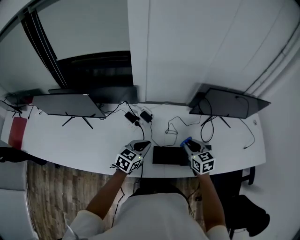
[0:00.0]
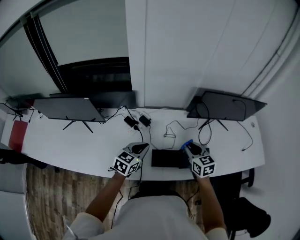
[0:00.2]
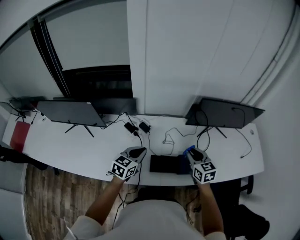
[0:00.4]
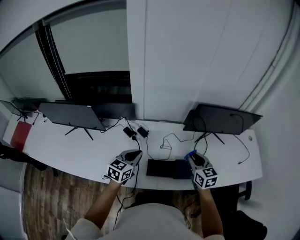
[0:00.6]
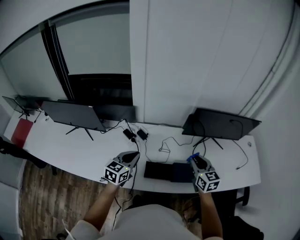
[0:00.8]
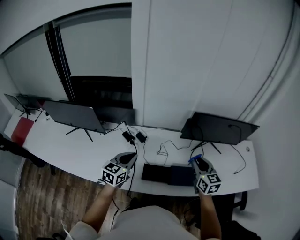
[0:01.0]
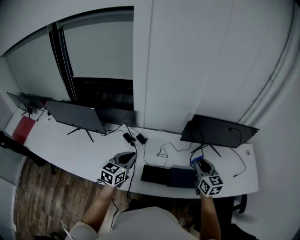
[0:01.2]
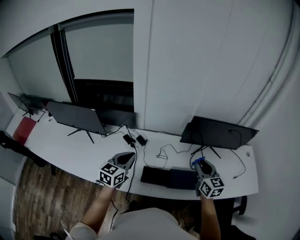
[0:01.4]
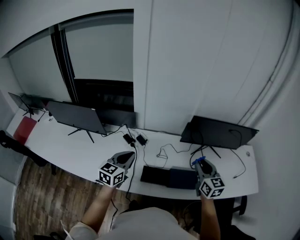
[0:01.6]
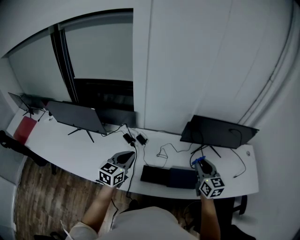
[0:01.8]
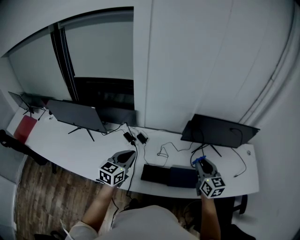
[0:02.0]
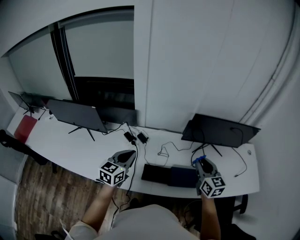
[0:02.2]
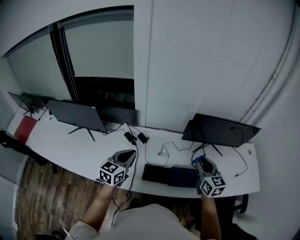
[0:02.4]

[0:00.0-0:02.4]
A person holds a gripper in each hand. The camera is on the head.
0:00.0 to 0:01.2: The right gripper travels upward and to the right by roughly 20 cm. Meanwhile the left gripper shifts roughly 10 cm upward.
0:01.2 to 0:02.4: The grippers stay close to where they were, moving slightly.

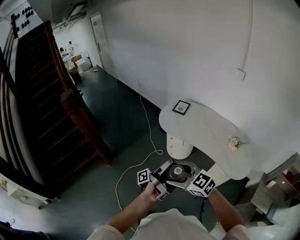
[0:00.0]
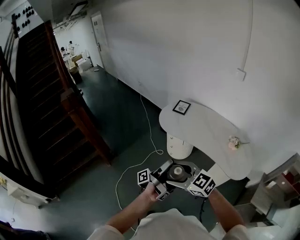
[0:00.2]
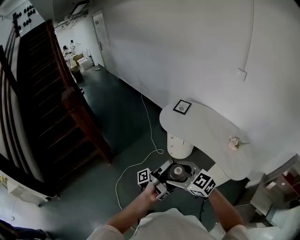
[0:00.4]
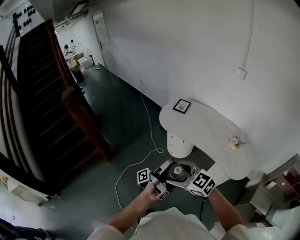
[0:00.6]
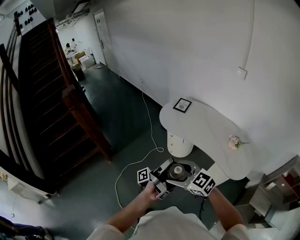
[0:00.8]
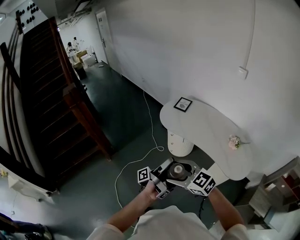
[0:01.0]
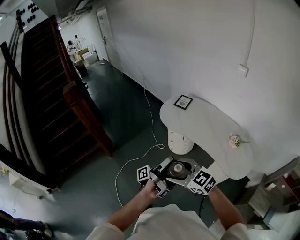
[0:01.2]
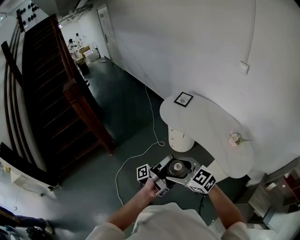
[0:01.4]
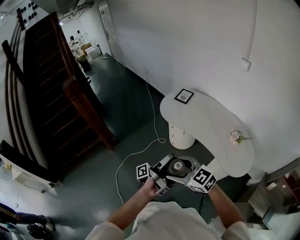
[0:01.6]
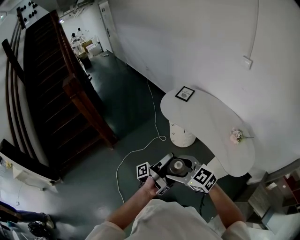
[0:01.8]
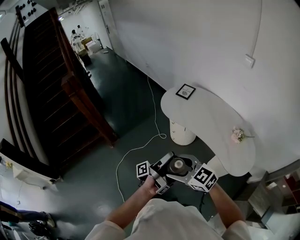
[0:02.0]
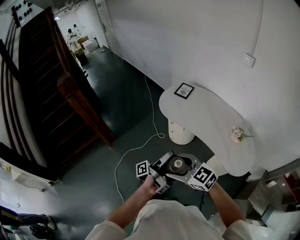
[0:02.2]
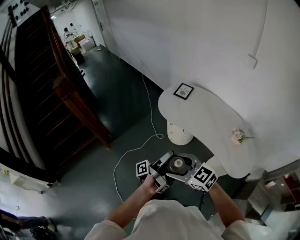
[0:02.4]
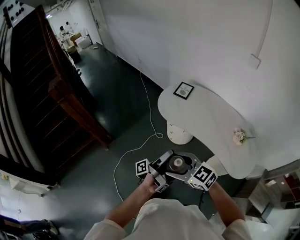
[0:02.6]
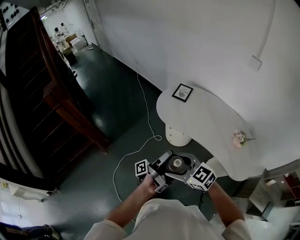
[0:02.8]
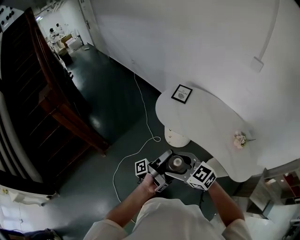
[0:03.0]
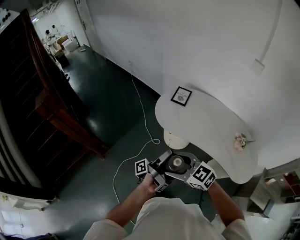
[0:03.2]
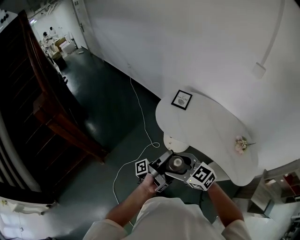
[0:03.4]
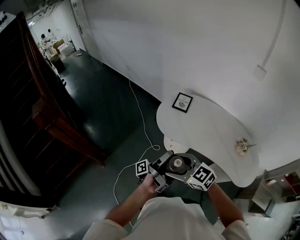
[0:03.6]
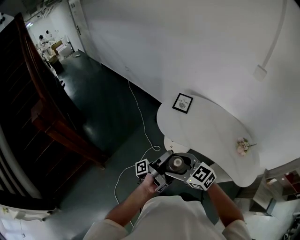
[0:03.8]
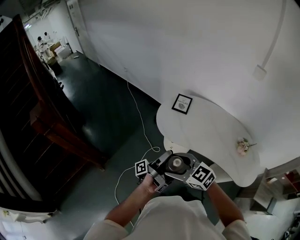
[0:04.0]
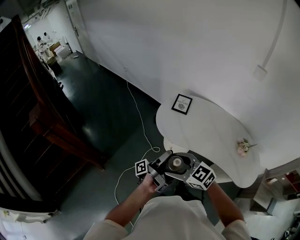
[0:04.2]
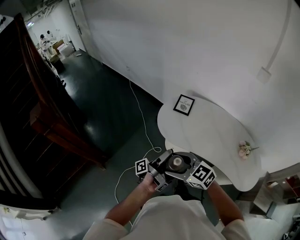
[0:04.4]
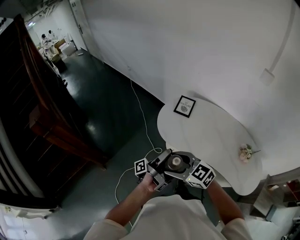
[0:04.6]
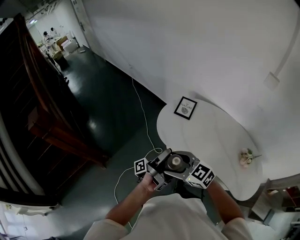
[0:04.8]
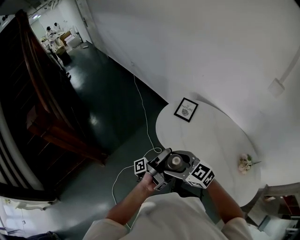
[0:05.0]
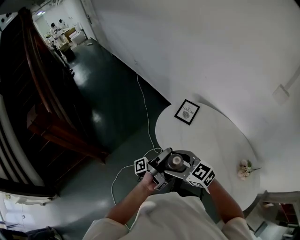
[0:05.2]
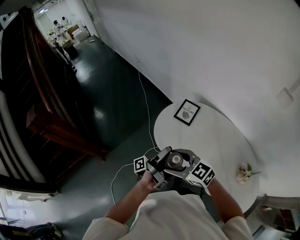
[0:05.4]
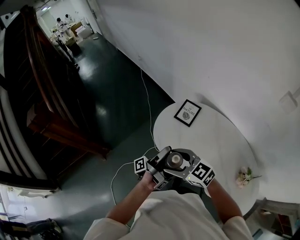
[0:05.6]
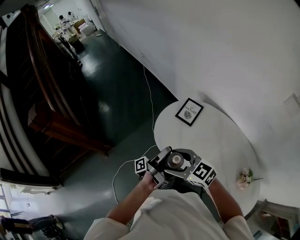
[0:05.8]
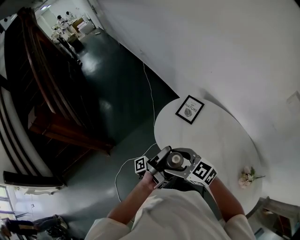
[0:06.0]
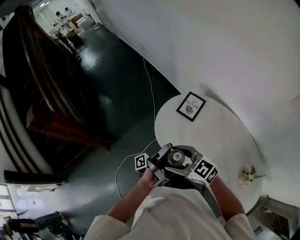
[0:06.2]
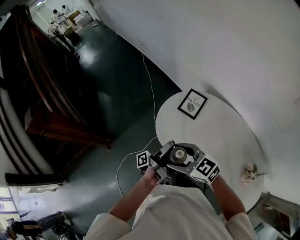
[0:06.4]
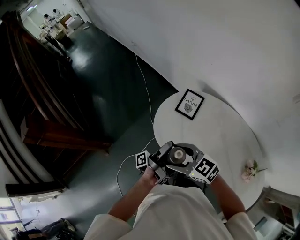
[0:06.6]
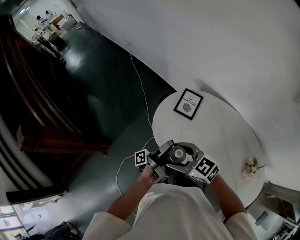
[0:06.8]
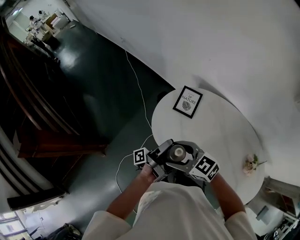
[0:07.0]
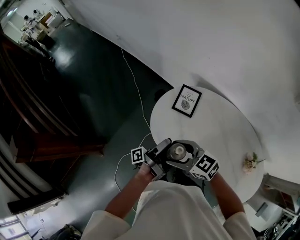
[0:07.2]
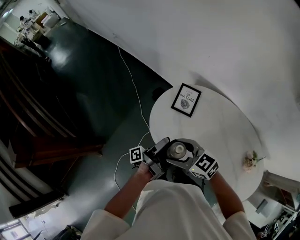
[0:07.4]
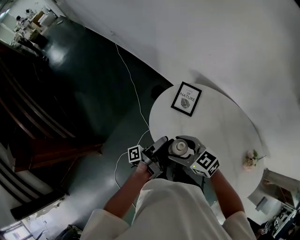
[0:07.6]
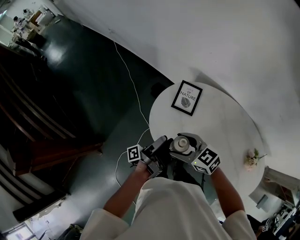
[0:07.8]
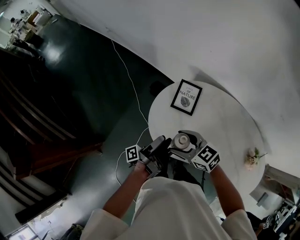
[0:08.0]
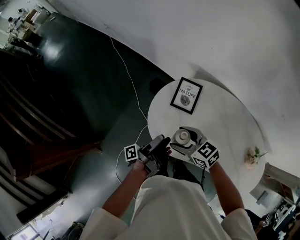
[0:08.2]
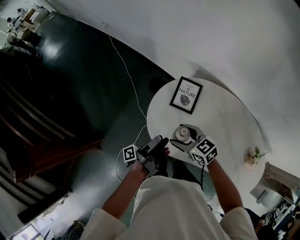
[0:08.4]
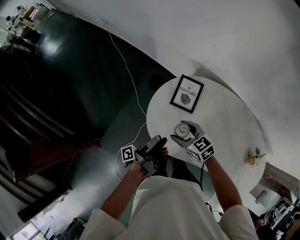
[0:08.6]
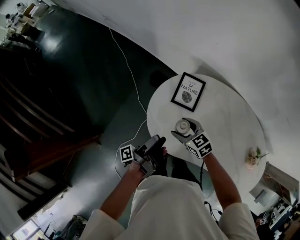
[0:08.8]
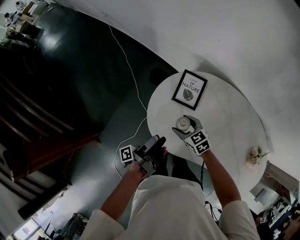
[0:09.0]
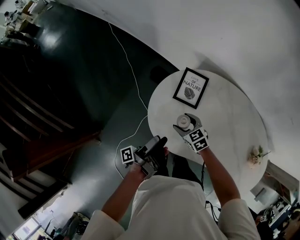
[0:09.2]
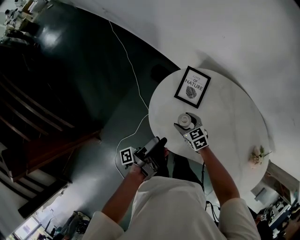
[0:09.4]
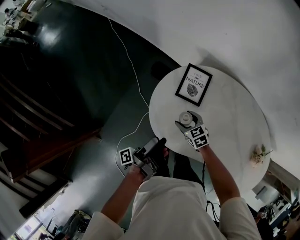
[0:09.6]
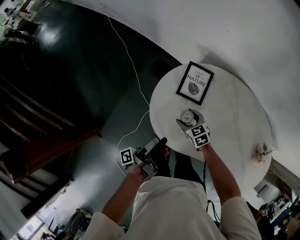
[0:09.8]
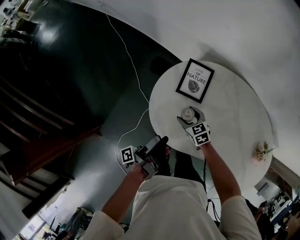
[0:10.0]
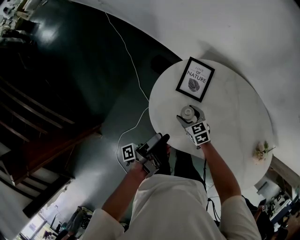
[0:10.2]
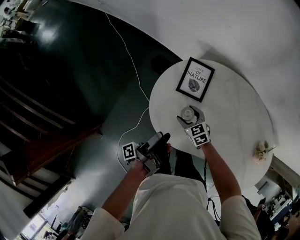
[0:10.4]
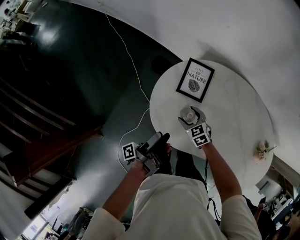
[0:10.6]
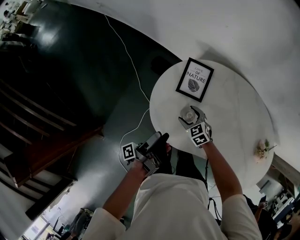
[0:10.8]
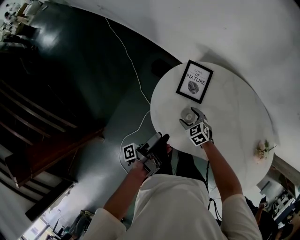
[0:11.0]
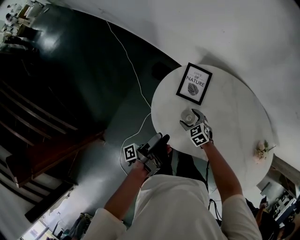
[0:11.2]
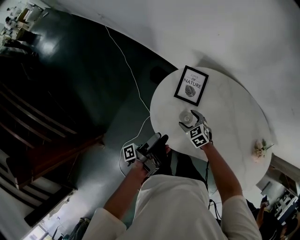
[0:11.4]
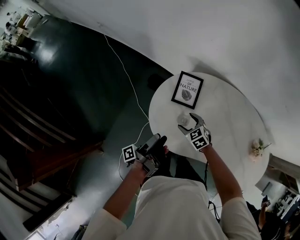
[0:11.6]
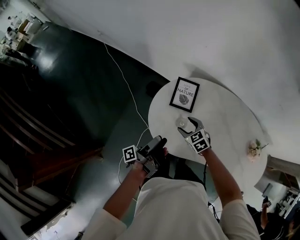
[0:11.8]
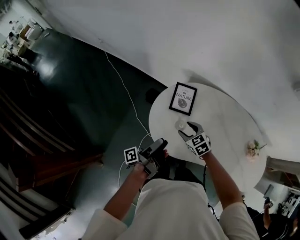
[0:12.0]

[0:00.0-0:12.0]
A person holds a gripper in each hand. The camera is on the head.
0:00.0 to 0:01.6: The right gripper changes place by approximately 10 cm.
0:01.6 to 0:03.0: The right gripper ends up roughly 20 cm from where it was.
0:03.0 to 0:04.4: The right gripper shifts by about 15 cm.
0:04.4 to 0:06.0: The right gripper moves about 25 cm.
0:06.0 to 0:07.6: The right gripper moves some 15 cm, and swivels some 20 degrees.
0:07.6 to 0:09.0: The right gripper travels downward by some 20 cm, and changes its angle by some 20 degrees.
0:09.0 to 0:10.4: The right gripper heads downward, covering about 10 cm.
0:10.4 to 0:12.0: The right gripper heads upward, covering approximately 10 cm.

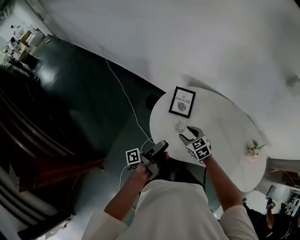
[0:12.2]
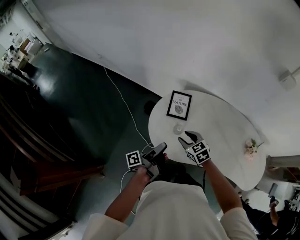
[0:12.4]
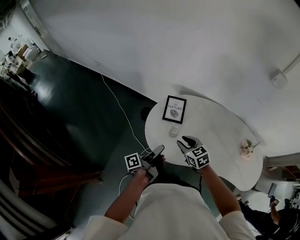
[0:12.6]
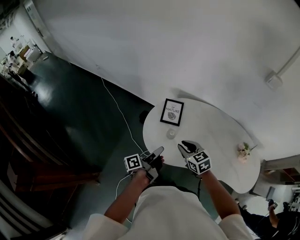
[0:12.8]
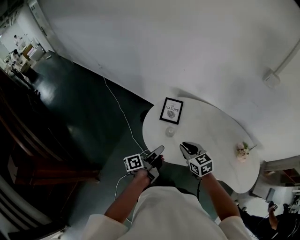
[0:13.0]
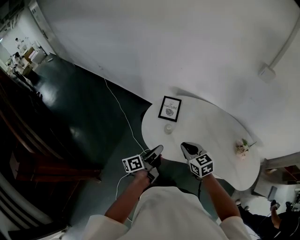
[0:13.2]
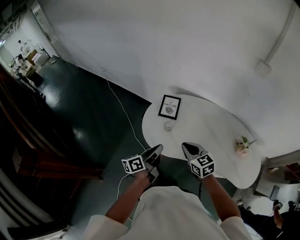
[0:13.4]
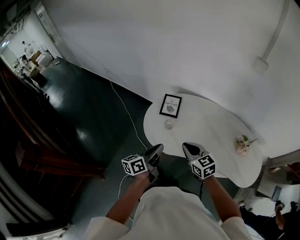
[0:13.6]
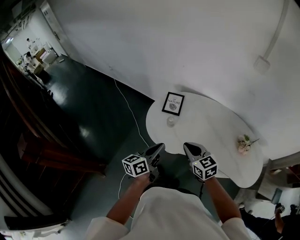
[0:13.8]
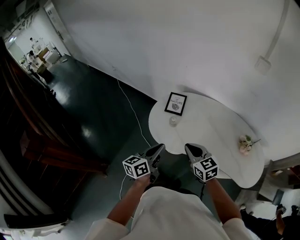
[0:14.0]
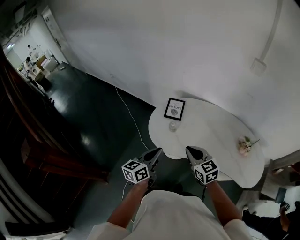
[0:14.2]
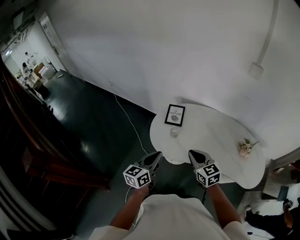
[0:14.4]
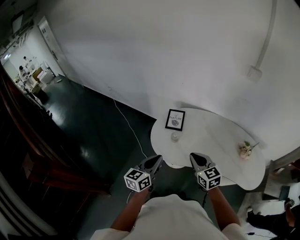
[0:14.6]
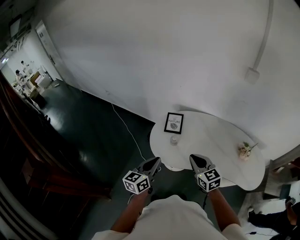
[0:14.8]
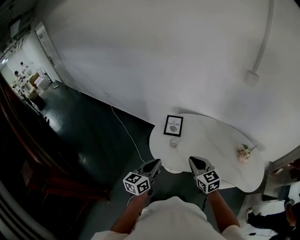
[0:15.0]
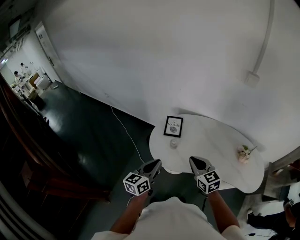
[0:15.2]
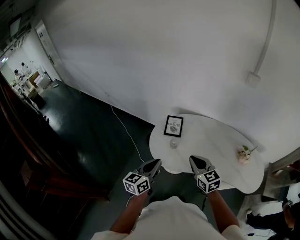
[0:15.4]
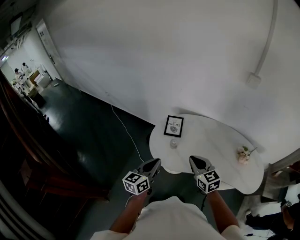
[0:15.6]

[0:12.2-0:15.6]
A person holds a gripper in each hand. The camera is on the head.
0:12.2 to 0:13.8: The right gripper changes place by roughly 30 cm, changes its angle by about 20 degrees, and closes its fingers.
0:13.8 to 0:15.6: The right gripper changes place by approximately 5 cm.

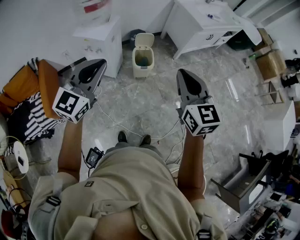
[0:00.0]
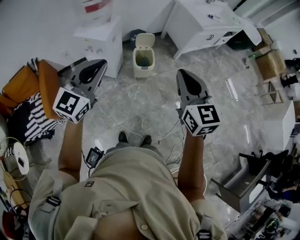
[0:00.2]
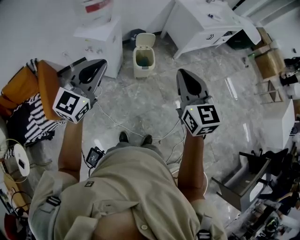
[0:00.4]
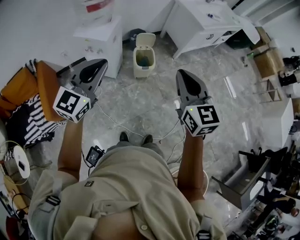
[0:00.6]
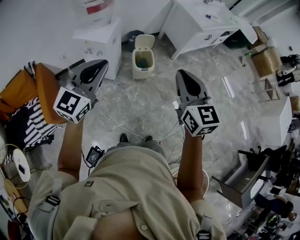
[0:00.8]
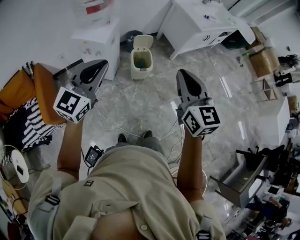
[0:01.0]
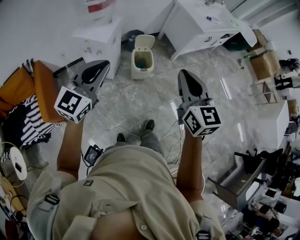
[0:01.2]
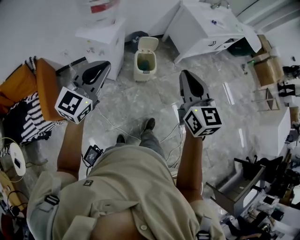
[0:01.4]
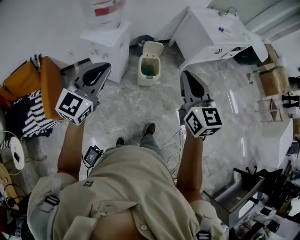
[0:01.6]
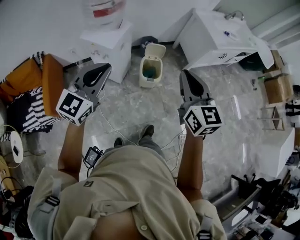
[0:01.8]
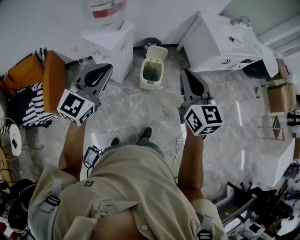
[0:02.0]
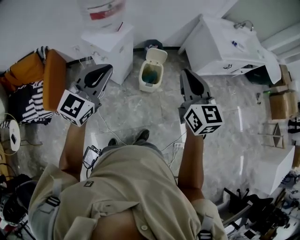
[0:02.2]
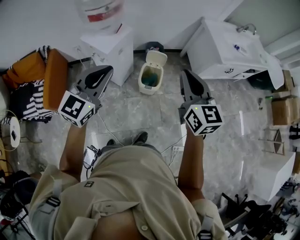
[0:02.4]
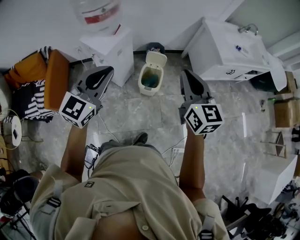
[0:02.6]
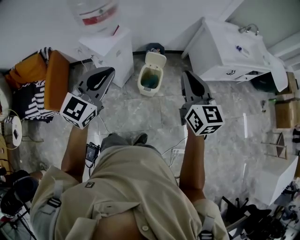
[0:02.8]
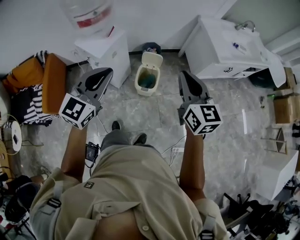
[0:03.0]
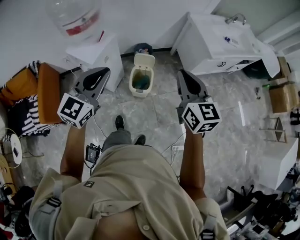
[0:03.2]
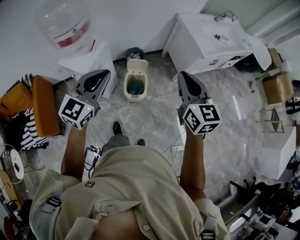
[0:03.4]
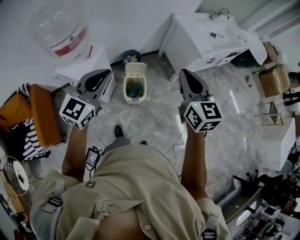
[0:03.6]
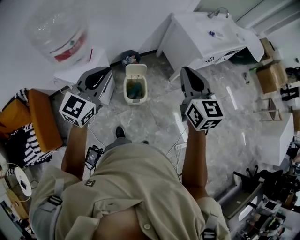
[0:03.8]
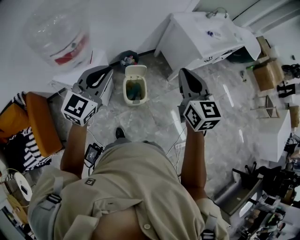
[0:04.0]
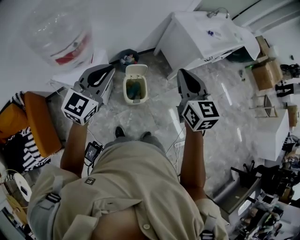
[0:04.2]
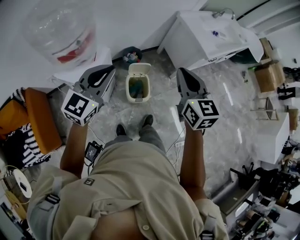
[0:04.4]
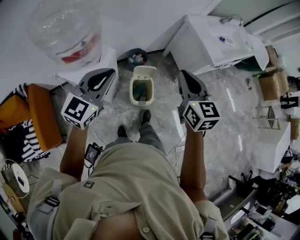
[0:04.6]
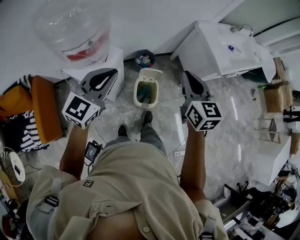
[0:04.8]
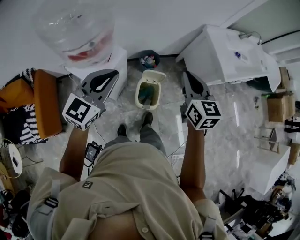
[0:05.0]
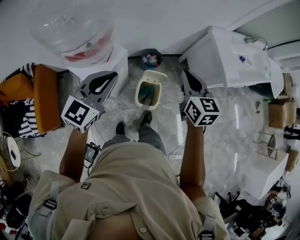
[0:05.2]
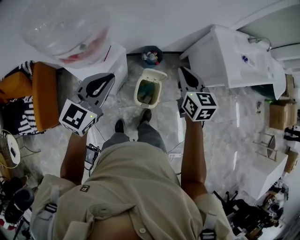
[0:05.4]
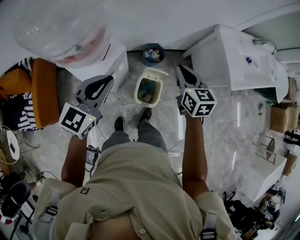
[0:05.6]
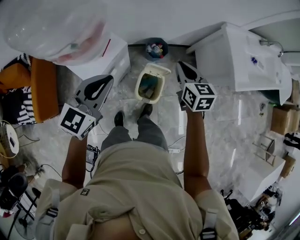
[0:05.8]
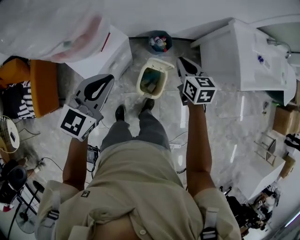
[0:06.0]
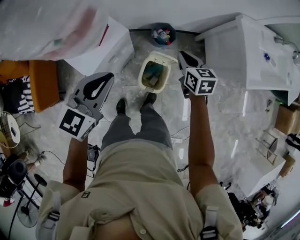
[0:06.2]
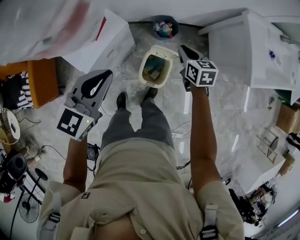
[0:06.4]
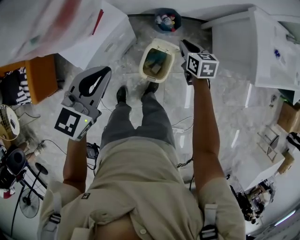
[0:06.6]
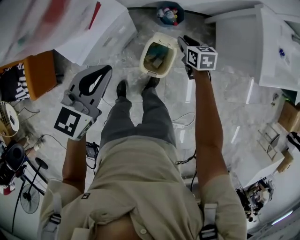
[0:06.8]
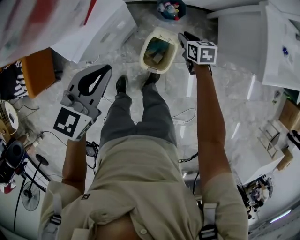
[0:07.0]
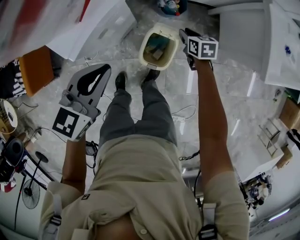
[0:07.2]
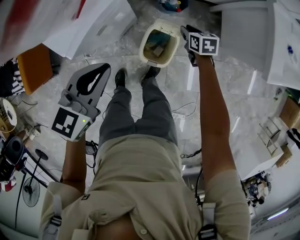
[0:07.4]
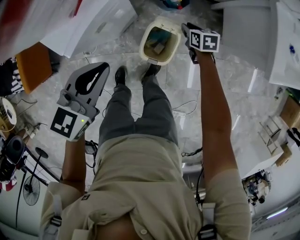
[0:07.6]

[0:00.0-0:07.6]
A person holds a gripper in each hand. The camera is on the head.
0:00.0 to 0:01.6: The grippers both shift forward by approximately 10 cm.
0:01.6 to 0:03.0: The left gripper travels to the right and forward by approximately 20 cm. The right gripper shifts roughly 25 cm forward and to the right.
0:03.0 to 0:04.6: Both grippers travel together forward and to the left, approximately 20 cm.
0:04.6 to 0:06.0: The right gripper travels downward and forward by approximately 35 cm, and changes its angle by roughly 30 degrees, while the left gripper is displaced downward and forward by roughly 15 cm, and changes its angle by approximately 30 degrees.
0:06.0 to 0:07.6: The left gripper goes roughly 15 cm downward. Meanwhile the right gripper shifts some 30 cm downward, and rotates roughly 20 degrees.
